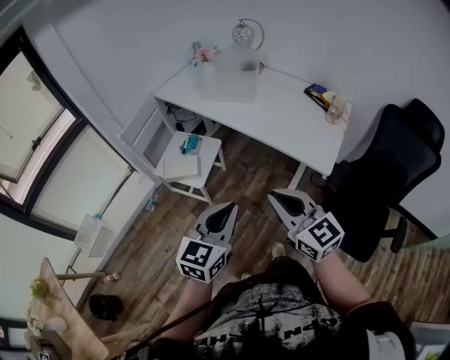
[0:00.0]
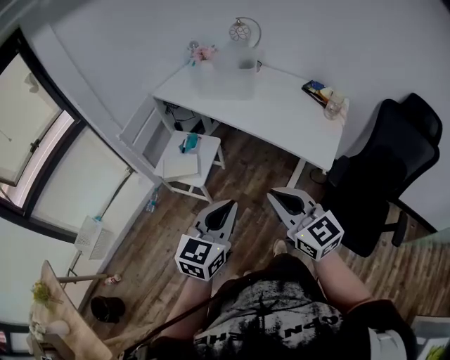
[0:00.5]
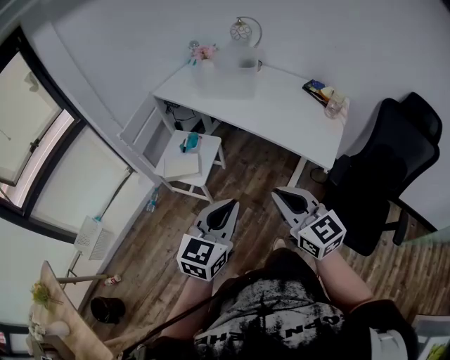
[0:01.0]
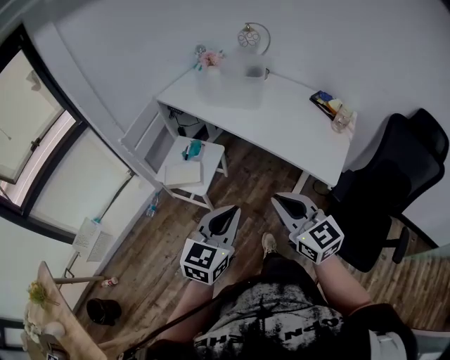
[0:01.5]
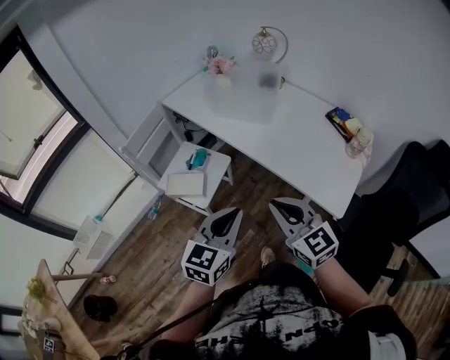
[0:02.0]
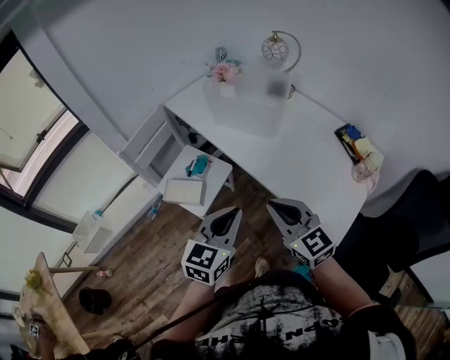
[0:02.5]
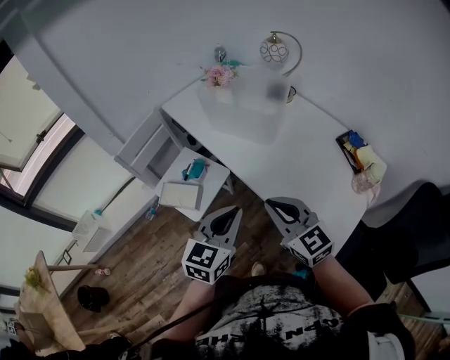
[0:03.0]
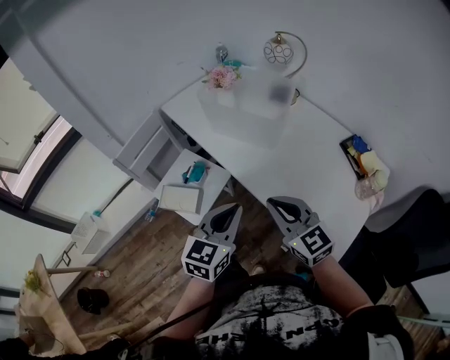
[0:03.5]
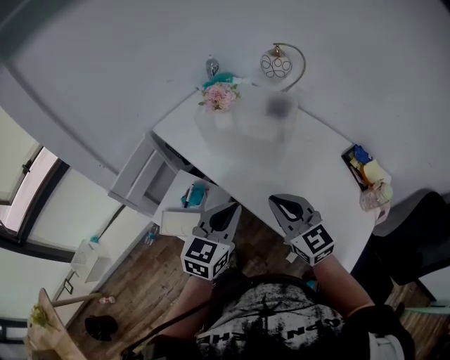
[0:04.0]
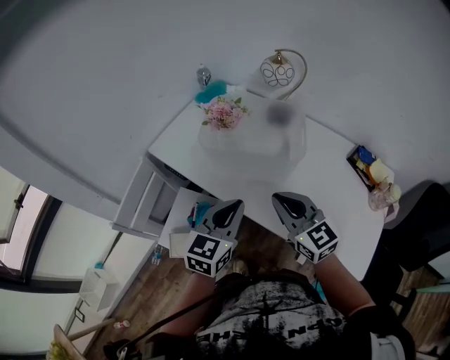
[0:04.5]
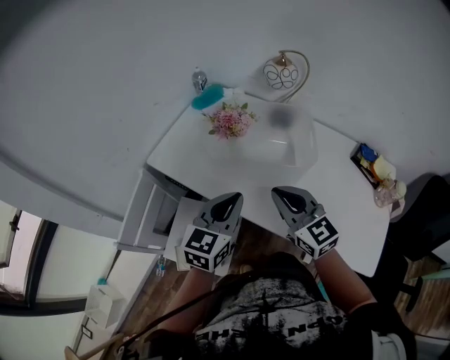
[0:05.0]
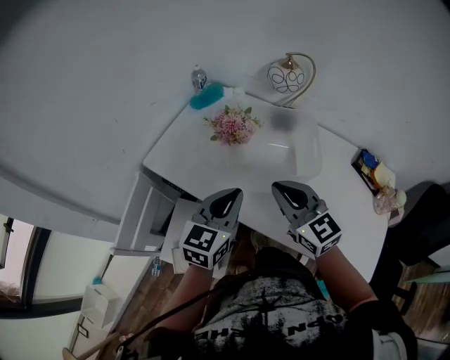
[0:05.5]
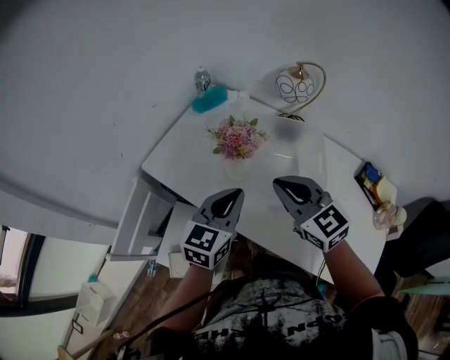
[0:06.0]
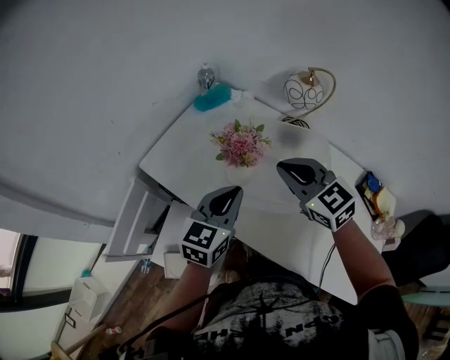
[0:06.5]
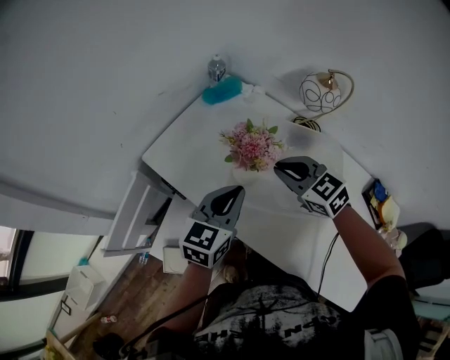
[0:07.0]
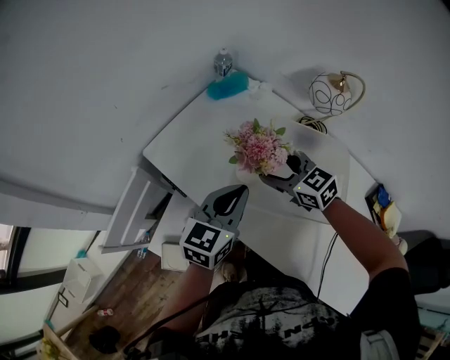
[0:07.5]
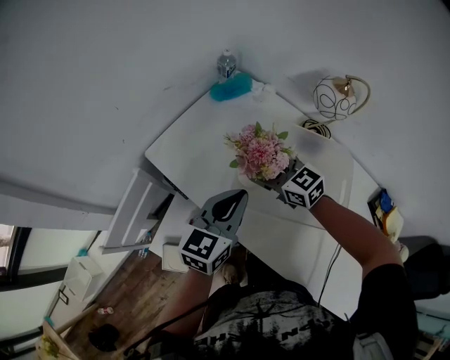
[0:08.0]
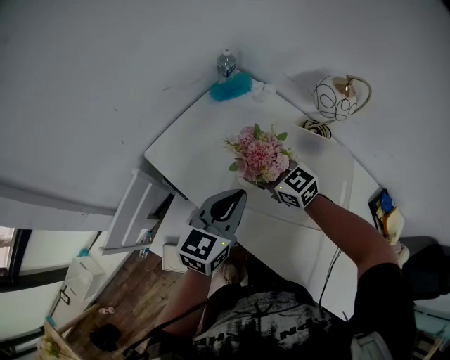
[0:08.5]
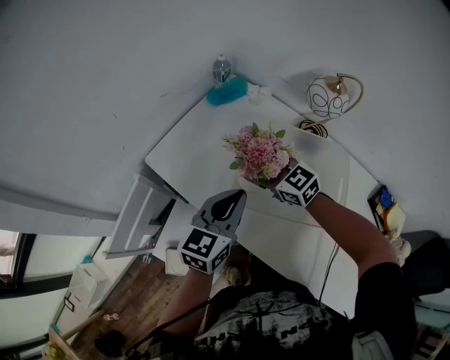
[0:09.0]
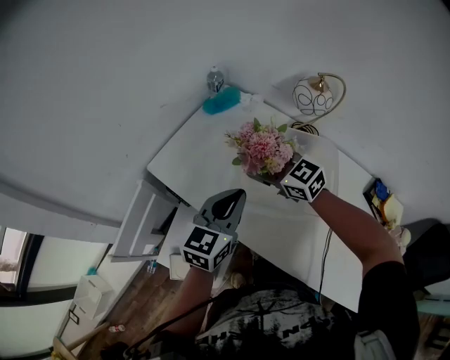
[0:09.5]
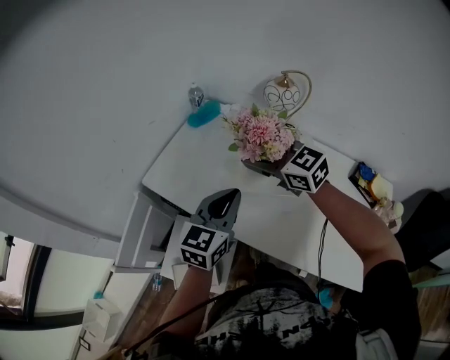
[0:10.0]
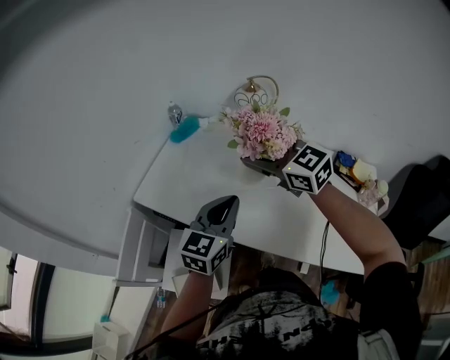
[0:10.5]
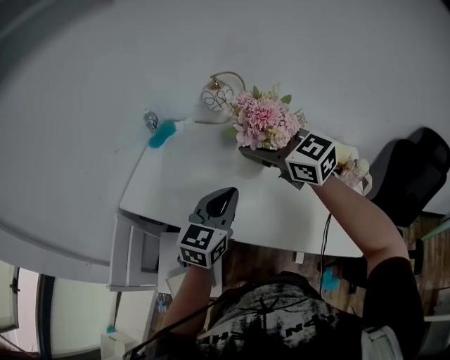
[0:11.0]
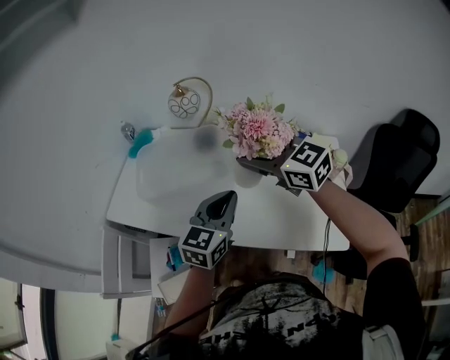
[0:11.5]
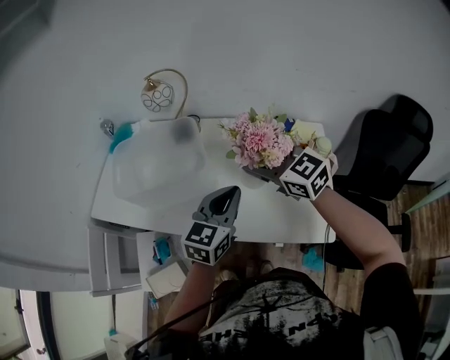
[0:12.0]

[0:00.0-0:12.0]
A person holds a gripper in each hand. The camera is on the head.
0:00.0 to 0:02.0: Both grippers move forward, approximately 15 cm.
0:02.0 to 0:04.0: Both grippers move forward, about 30 cm.
0:04.0 to 0:06.0: The right gripper goes about 25 cm forward and to the left. The left gripper goes some 25 cm forward.
0:06.0 to 0:08.0: The left gripper heads forward, covering roughly 5 cm. Meanwhile the right gripper moves forward and downward, some 20 cm, rotates some 20 degrees, and opens.
0:08.0 to 0:10.0: The left gripper goes about 10 cm backward and upward; the right gripper heads upward and backward, covering some 20 cm.
0:10.0 to 0:12.0: Both grippers move to the right and backward, roughly 35 cm. The left gripper rotates some 20 degrees; the right gripper rotates approximately 20 degrees.

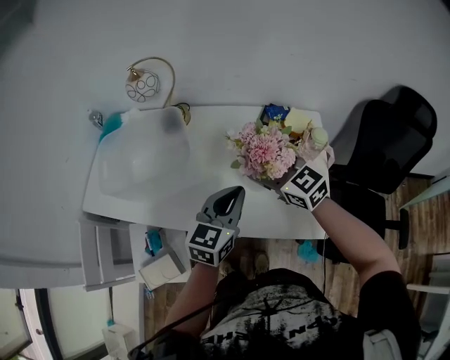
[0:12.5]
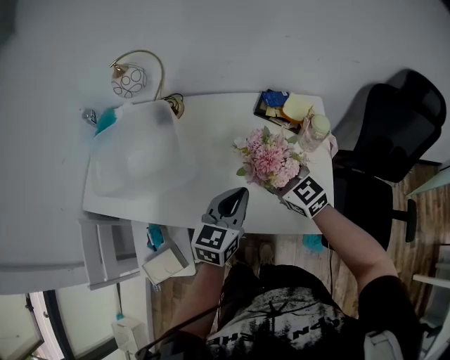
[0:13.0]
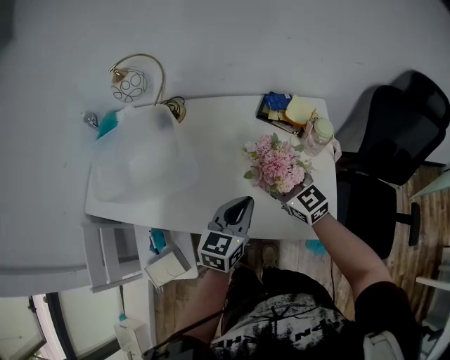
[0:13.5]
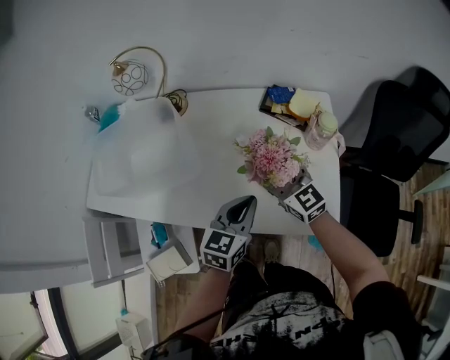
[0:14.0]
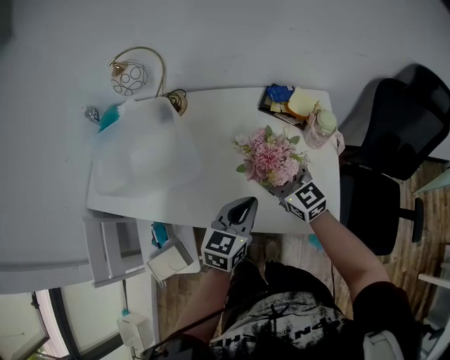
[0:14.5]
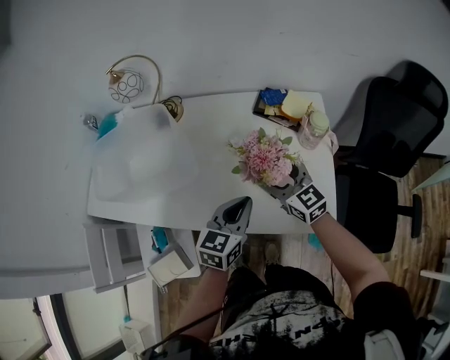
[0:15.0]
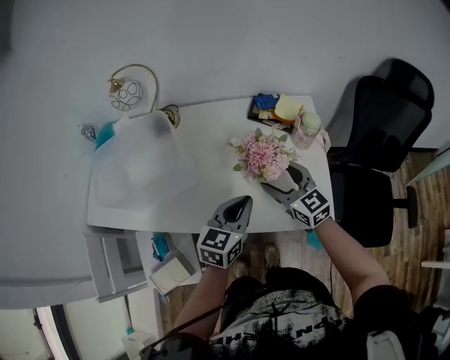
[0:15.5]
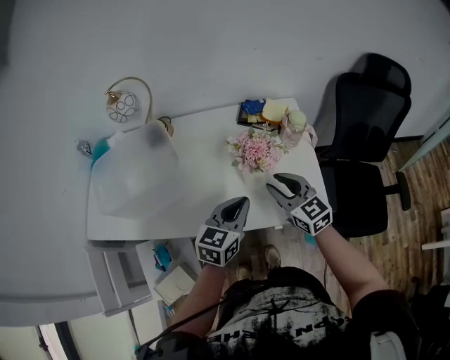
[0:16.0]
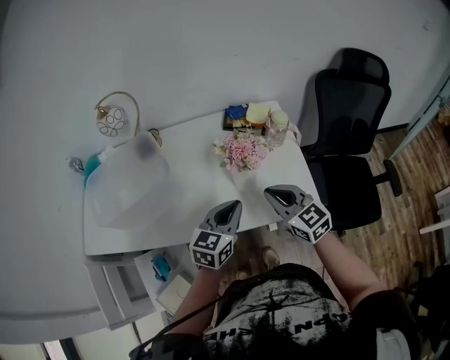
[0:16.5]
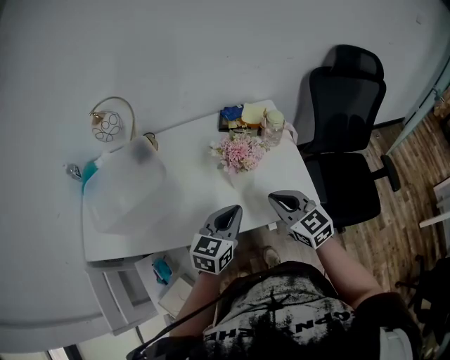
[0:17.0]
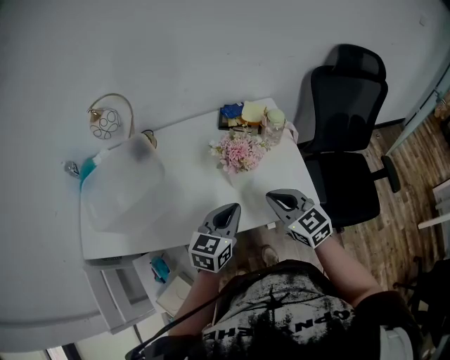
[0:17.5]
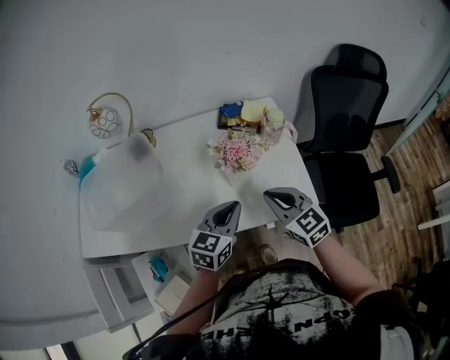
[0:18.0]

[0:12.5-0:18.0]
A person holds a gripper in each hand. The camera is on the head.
0:12.5 to 0:14.5: Both grippers move downward, approximately 10 cm.
0:14.5 to 0:16.0: The right gripper is displaced backward by approximately 10 cm, and closes its fingers.
0:16.0 to 0:18.0: The right gripper heads backward, covering approximately 5 cm, and closes up.

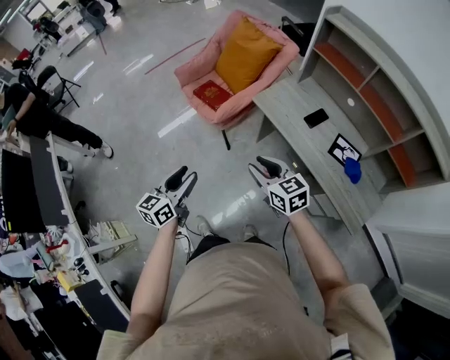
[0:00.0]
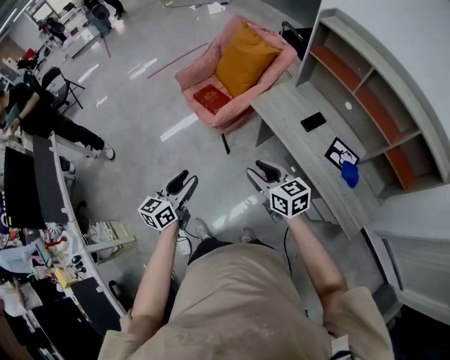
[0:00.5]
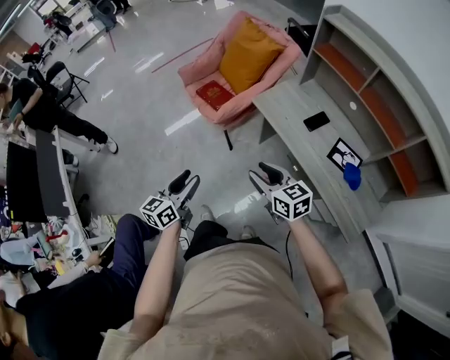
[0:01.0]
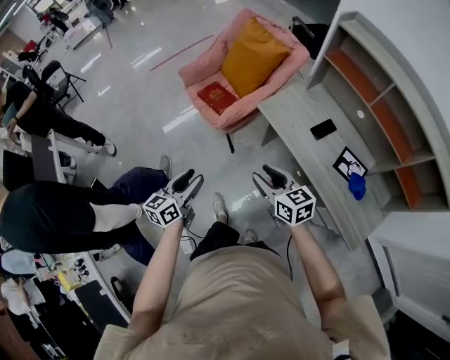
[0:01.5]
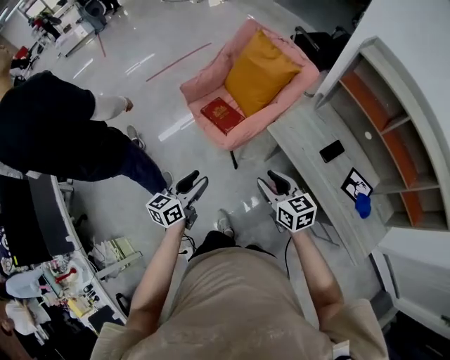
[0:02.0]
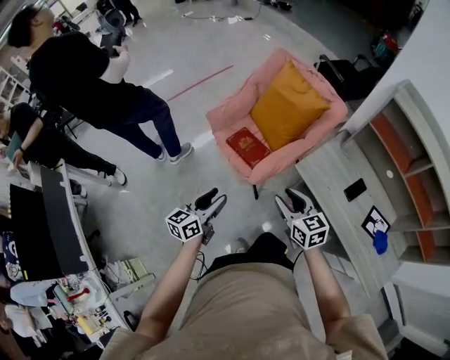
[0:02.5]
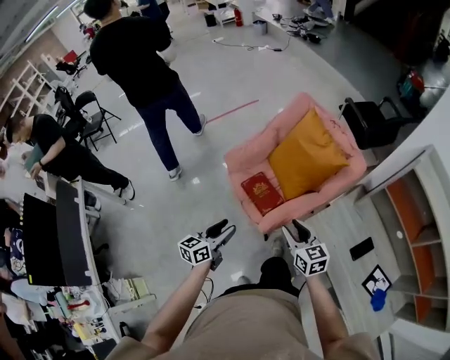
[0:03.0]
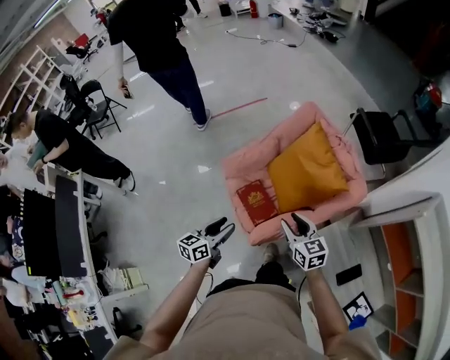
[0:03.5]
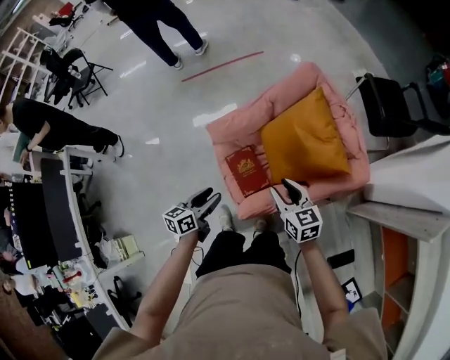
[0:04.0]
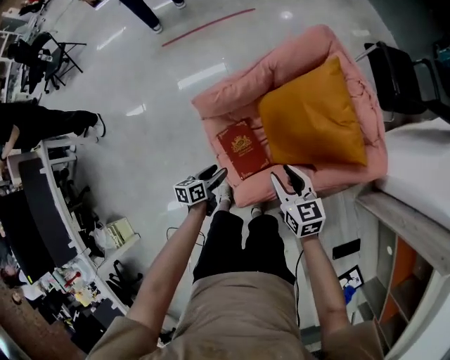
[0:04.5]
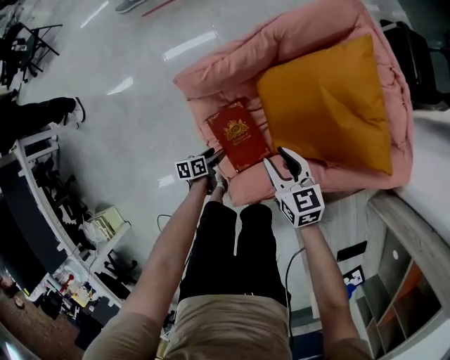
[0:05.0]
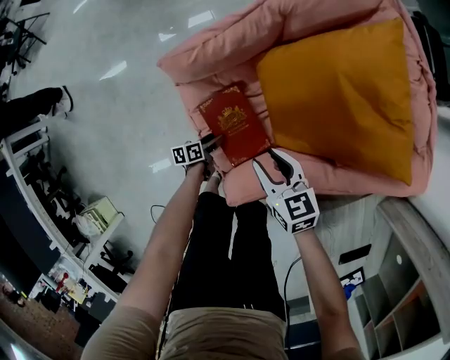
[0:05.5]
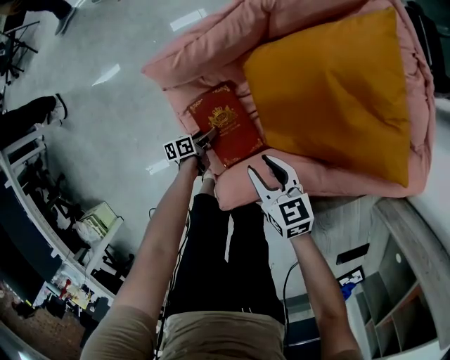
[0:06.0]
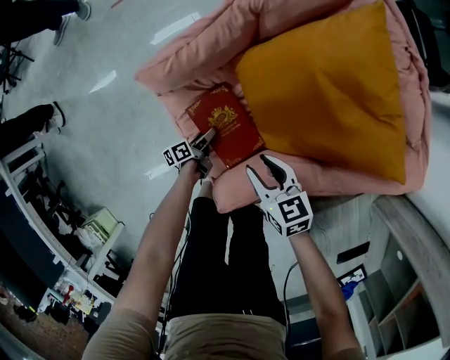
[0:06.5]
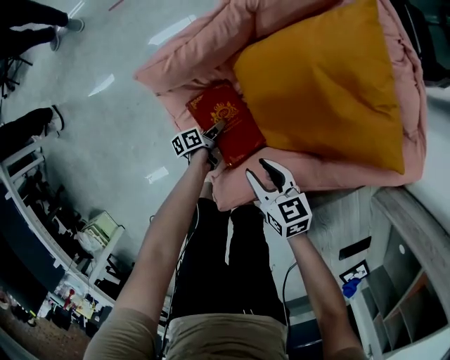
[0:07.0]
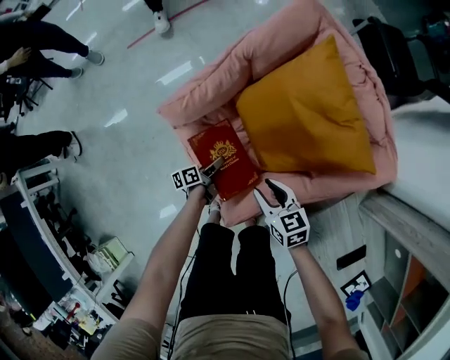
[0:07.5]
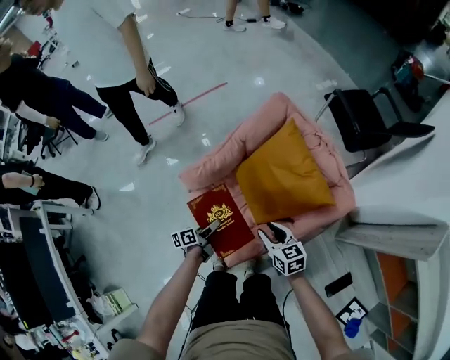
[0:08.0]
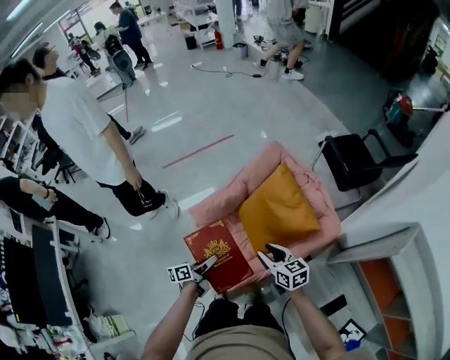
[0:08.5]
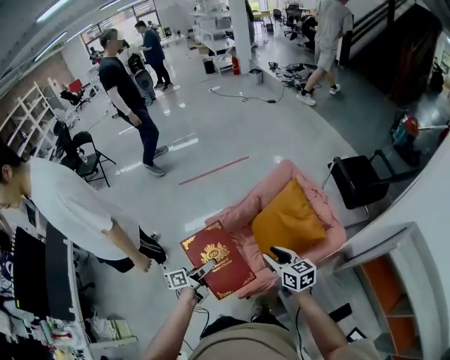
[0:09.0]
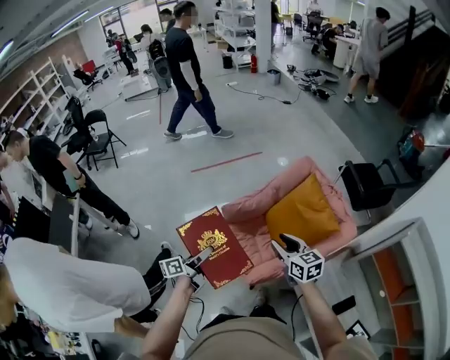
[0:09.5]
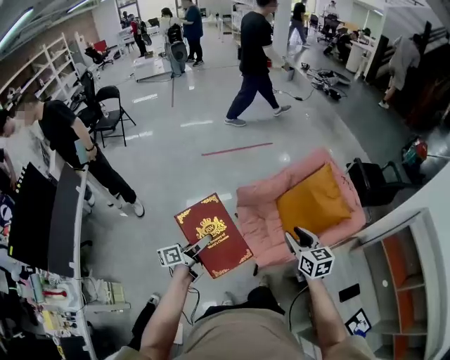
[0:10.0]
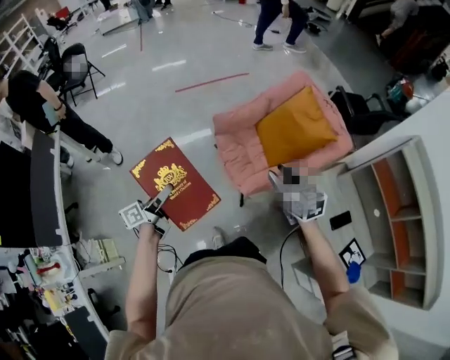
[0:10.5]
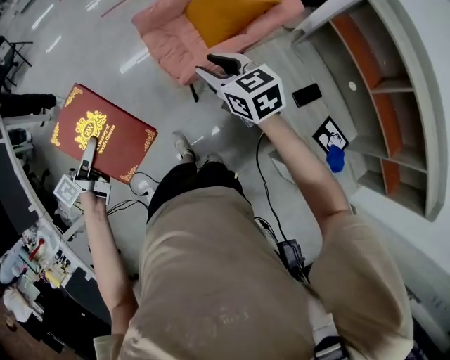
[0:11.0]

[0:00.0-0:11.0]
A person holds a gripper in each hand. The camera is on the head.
0:00.0 to 0:02.0: The two grippers go roughly 20 cm forward.
0:02.0 to 0:03.5: Both grippers travel together forward, roughly 40 cm.
0:03.5 to 0:05.5: The left gripper goes roughly 60 cm downward, and changes its angle by about 50 degrees; the right gripper moves downward and forward, some 40 cm.
0:05.5 to 0:07.5: The right gripper moves to the right, some 5 cm. Meanwhile the left gripper shifts roughly 15 cm upward, to the right and forward.
0:07.5 to 0:09.0: Both grippers travel together upward, roughly 40 cm. The left gripper rotates about 30 degrees.
0:09.0 to 0:11.0: The right gripper heads backward, covering some 30 cm. The left gripper goes some 40 cm backward and to the left.
